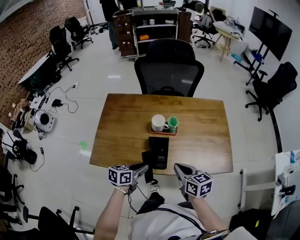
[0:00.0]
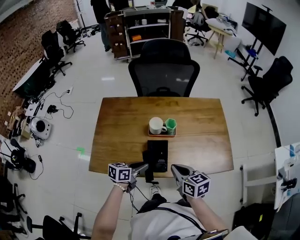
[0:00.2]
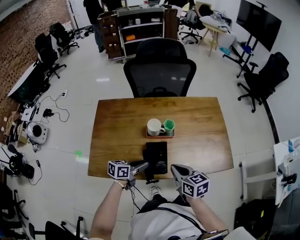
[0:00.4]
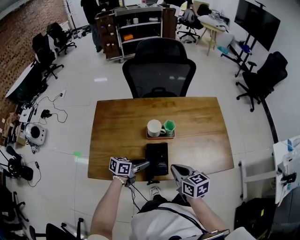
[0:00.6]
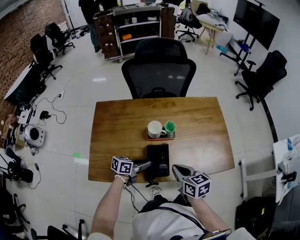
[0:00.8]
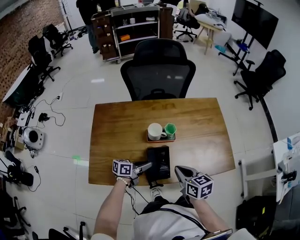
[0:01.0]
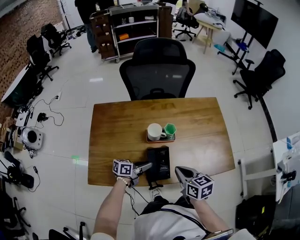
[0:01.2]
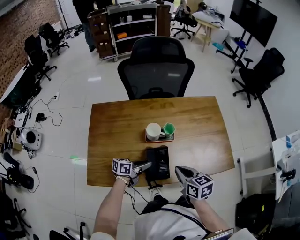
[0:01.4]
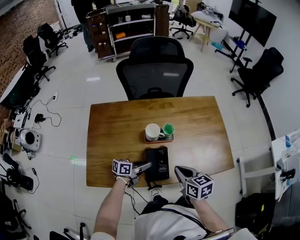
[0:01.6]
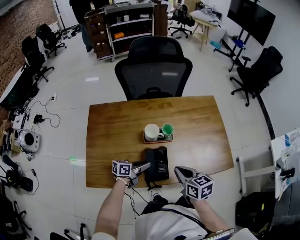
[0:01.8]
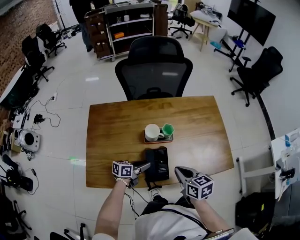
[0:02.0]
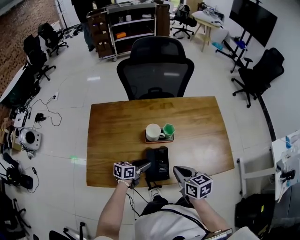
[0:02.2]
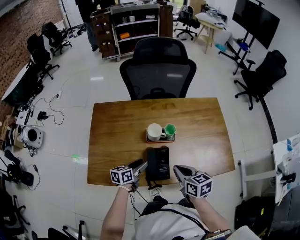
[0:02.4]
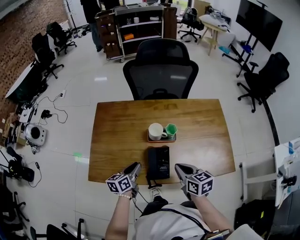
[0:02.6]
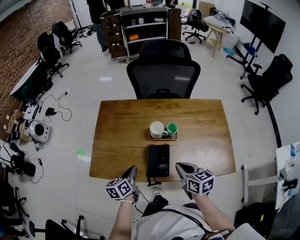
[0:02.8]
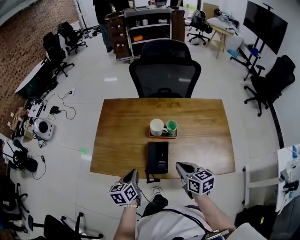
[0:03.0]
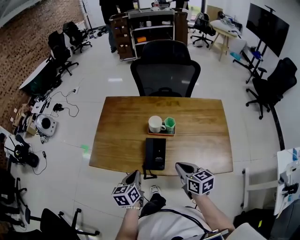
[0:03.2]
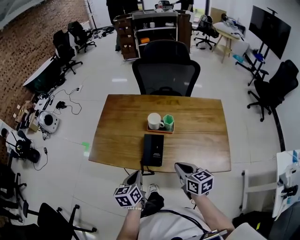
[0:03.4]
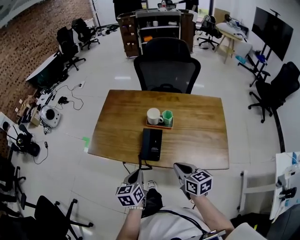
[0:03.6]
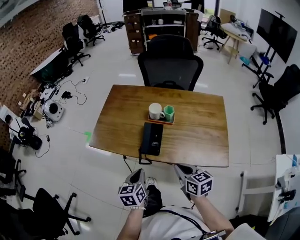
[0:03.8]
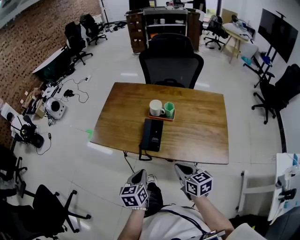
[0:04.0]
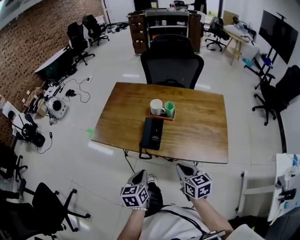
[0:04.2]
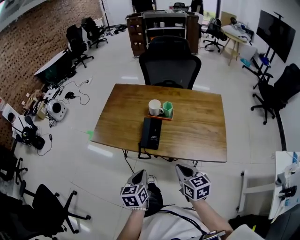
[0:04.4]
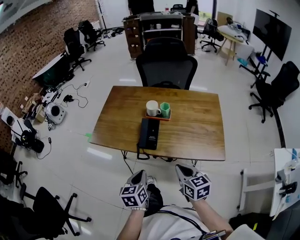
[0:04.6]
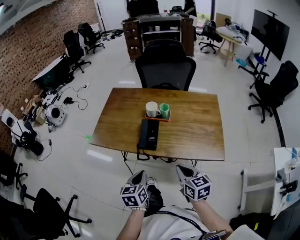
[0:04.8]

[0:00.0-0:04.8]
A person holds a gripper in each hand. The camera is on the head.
0:00.0 to 0:01.6: The right gripper moves approximately 5 cm. Meanwhile the left gripper goes approximately 10 cm forward and downward, and turns by some 30 degrees.
0:01.6 to 0:03.2: The left gripper ends up about 15 cm from where it was, changes its angle by about 60 degrees, and opens, then closes again; the right gripper changes place by approximately 5 cm.
0:03.2 to 0:04.8: The grippers both shift backward by roughly 15 cm.

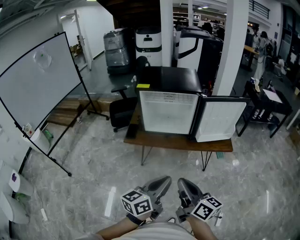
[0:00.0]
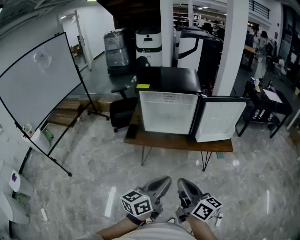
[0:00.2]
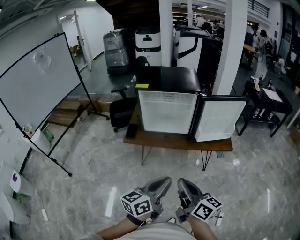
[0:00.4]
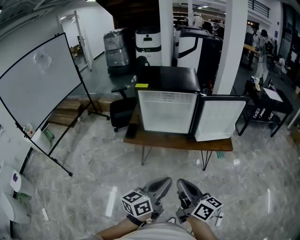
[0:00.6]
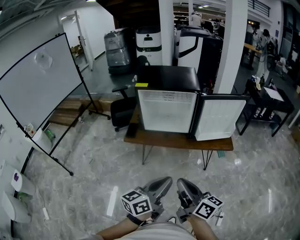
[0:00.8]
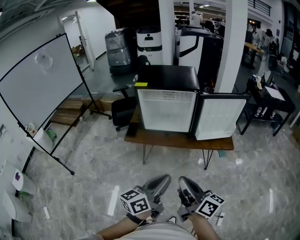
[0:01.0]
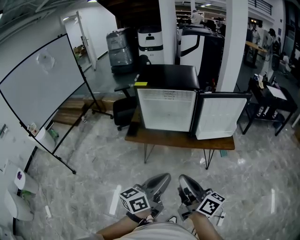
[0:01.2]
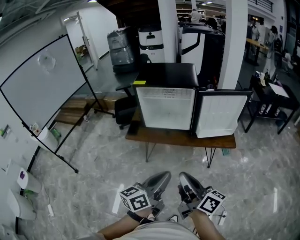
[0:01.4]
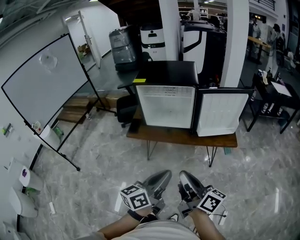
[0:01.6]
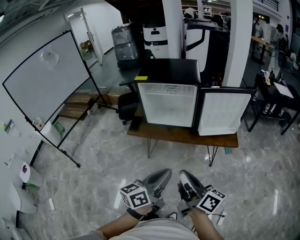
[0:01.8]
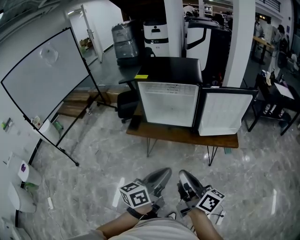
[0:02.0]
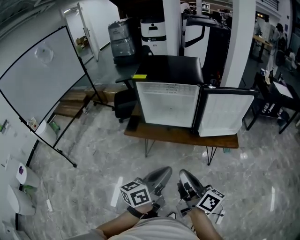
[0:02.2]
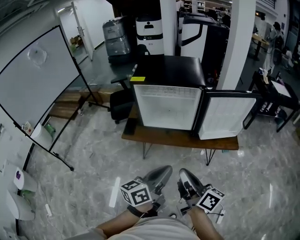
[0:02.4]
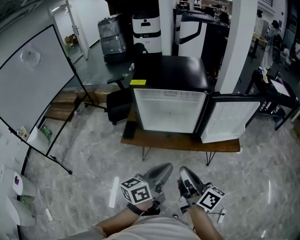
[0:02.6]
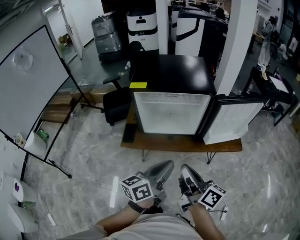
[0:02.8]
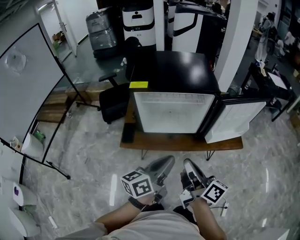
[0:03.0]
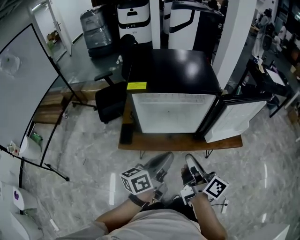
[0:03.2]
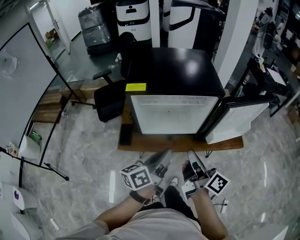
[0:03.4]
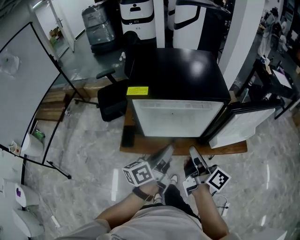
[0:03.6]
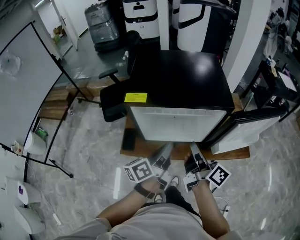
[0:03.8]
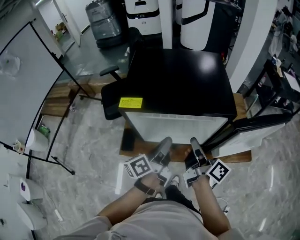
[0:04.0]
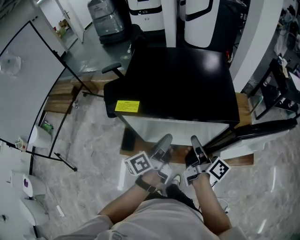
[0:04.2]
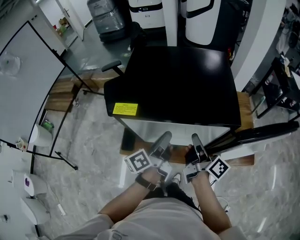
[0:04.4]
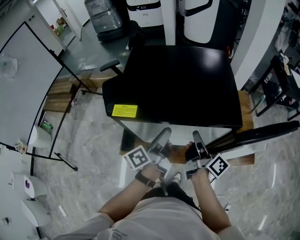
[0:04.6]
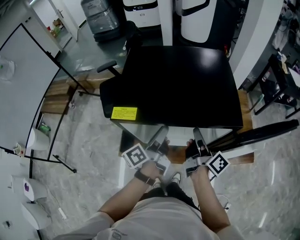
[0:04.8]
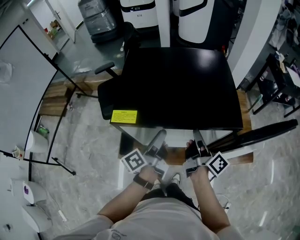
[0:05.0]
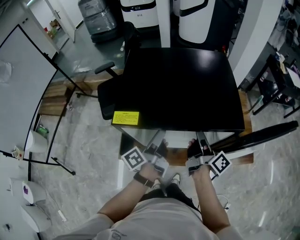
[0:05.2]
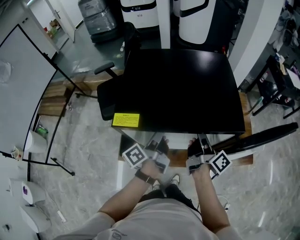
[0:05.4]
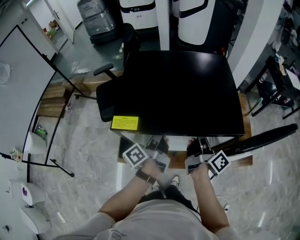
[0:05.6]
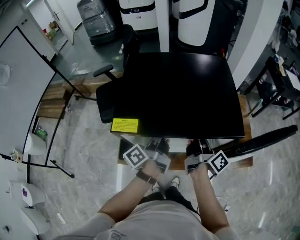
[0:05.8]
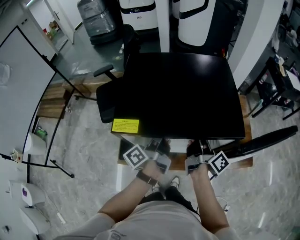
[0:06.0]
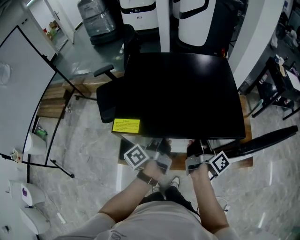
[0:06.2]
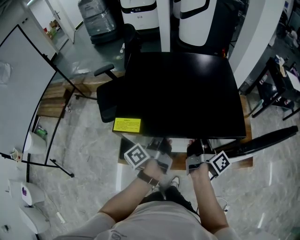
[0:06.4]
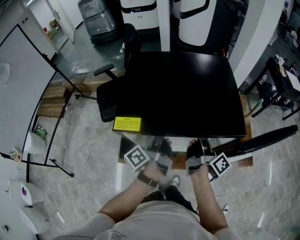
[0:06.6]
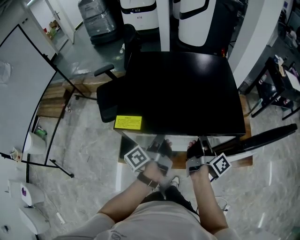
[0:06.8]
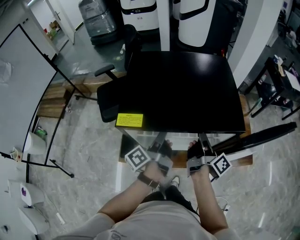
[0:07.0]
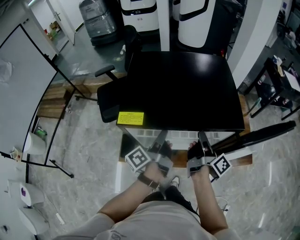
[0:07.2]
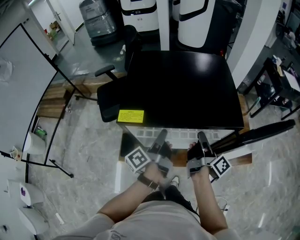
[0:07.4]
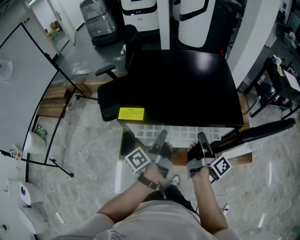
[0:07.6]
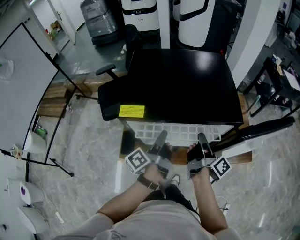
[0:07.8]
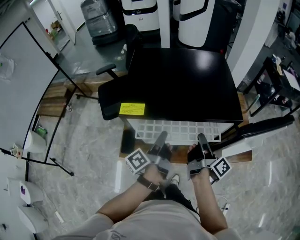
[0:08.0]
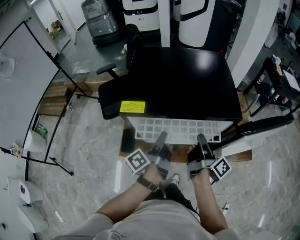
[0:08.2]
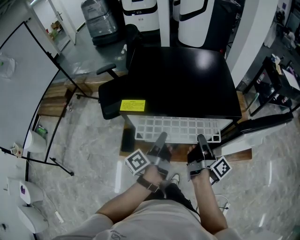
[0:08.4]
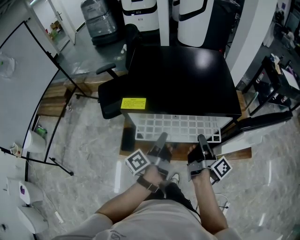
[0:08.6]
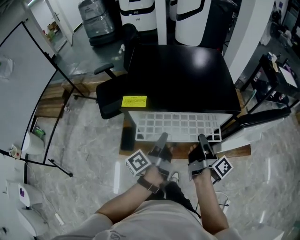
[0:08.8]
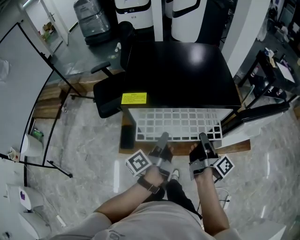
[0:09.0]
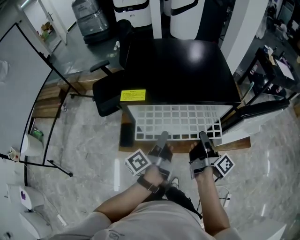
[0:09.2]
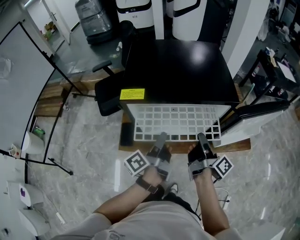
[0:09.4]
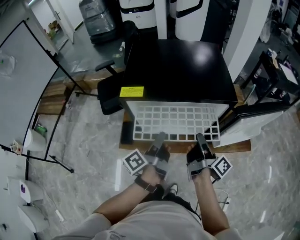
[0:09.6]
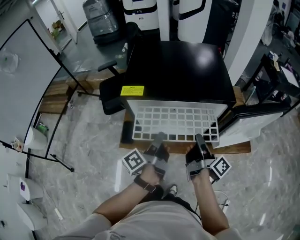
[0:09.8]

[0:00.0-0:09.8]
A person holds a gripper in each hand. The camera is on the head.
0:01.4 to 0:02.8: The left gripper moves roughly 20 cm.
0:02.8 to 0:04.2: The left gripper moves approximately 25 cm, and swivels about 20 degrees.
0:04.2 to 0:05.6: The left gripper shifts by approximately 10 cm.
0:07.0 to 0:08.4: The left gripper changes place by about 5 cm.
0:08.4 to 0:09.8: The left gripper shifts by approximately 5 cm.

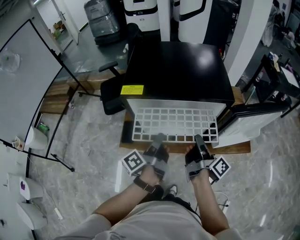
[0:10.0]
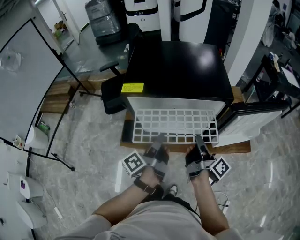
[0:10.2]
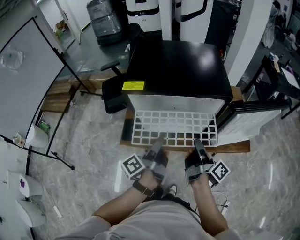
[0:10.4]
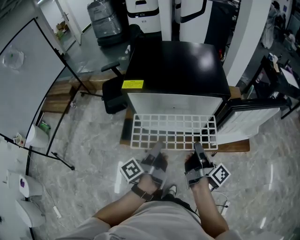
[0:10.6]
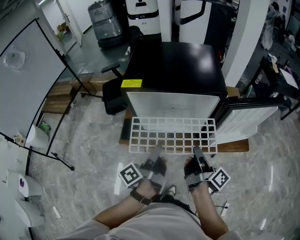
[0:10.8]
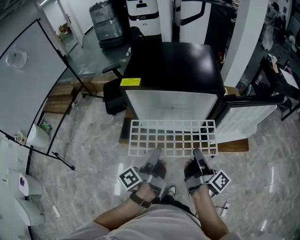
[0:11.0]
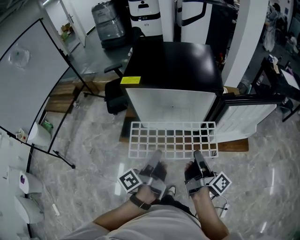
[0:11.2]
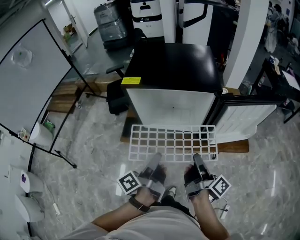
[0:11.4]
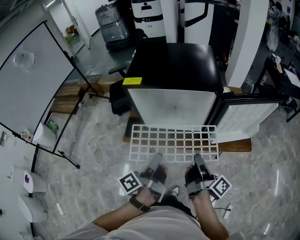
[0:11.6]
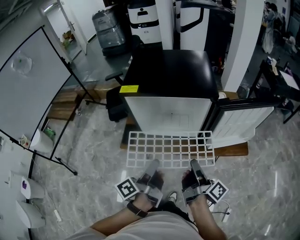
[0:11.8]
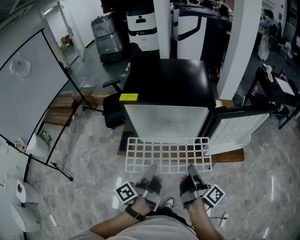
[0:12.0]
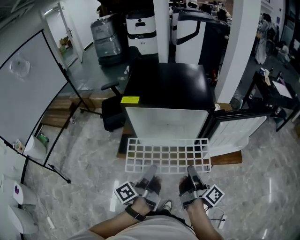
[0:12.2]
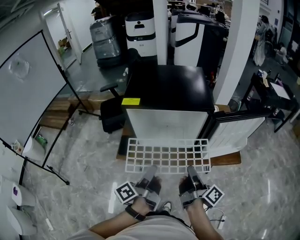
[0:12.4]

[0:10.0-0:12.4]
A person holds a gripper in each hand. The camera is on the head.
0:10.0 to 0:11.2: The left gripper moves about 15 cm.

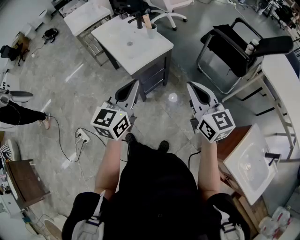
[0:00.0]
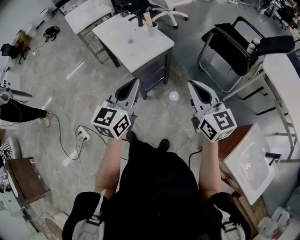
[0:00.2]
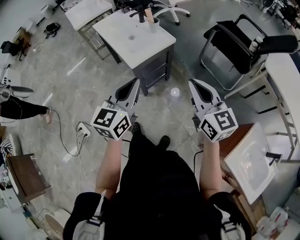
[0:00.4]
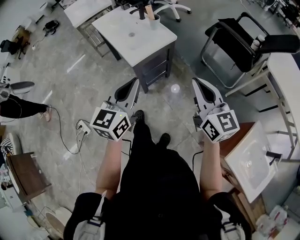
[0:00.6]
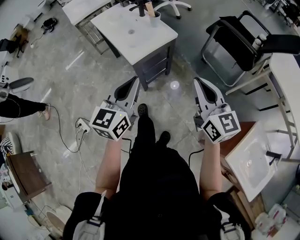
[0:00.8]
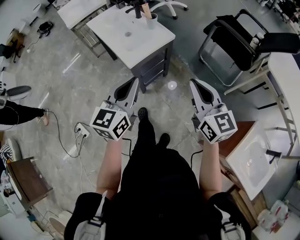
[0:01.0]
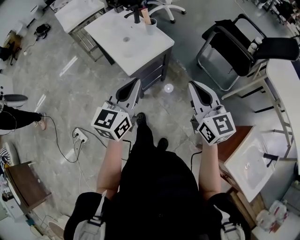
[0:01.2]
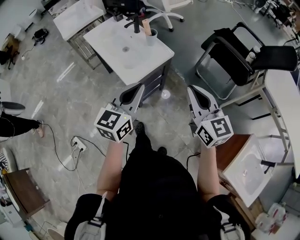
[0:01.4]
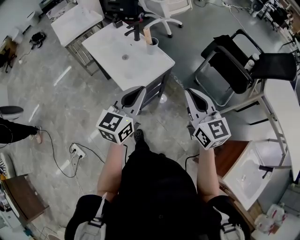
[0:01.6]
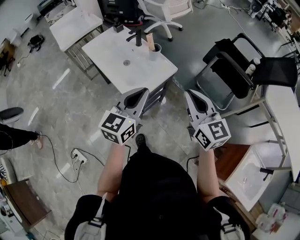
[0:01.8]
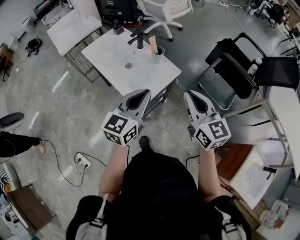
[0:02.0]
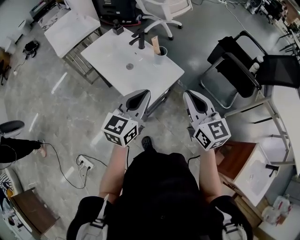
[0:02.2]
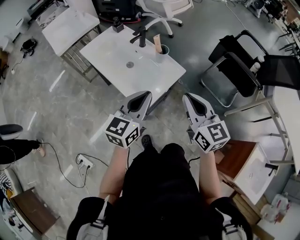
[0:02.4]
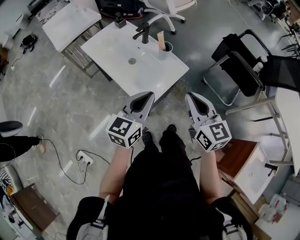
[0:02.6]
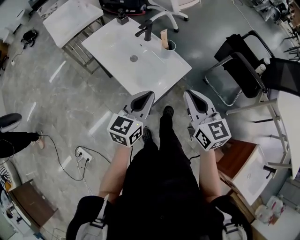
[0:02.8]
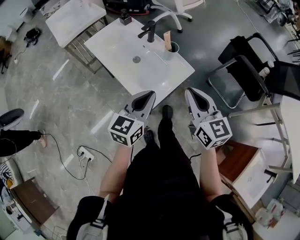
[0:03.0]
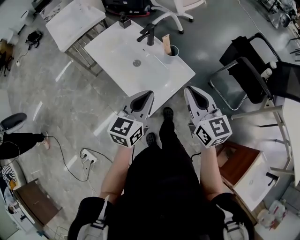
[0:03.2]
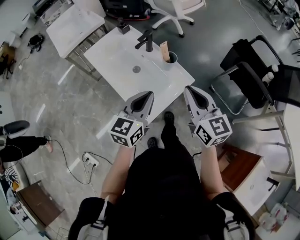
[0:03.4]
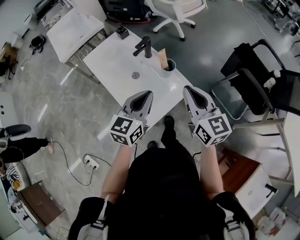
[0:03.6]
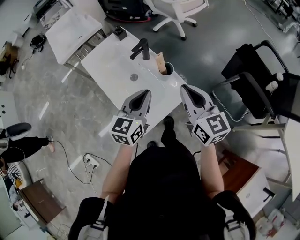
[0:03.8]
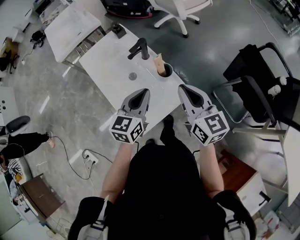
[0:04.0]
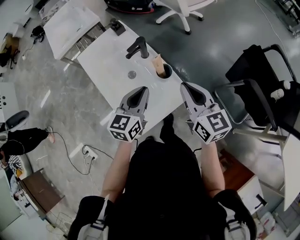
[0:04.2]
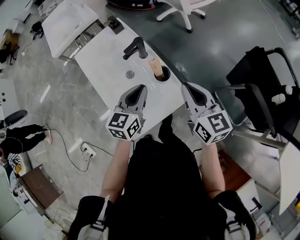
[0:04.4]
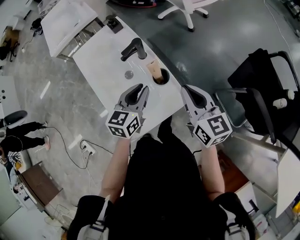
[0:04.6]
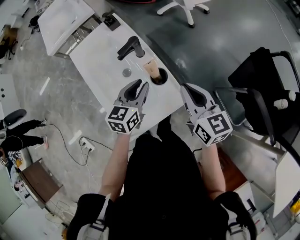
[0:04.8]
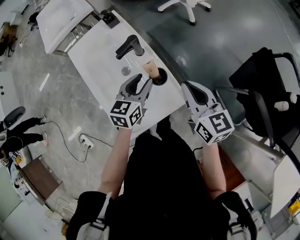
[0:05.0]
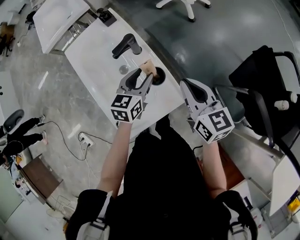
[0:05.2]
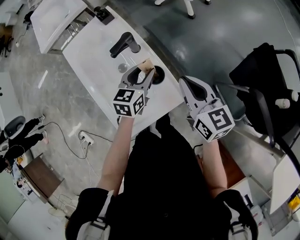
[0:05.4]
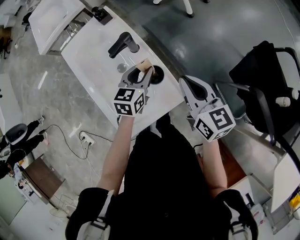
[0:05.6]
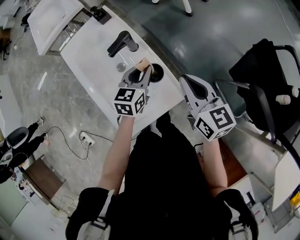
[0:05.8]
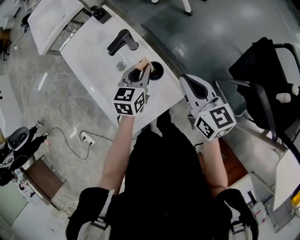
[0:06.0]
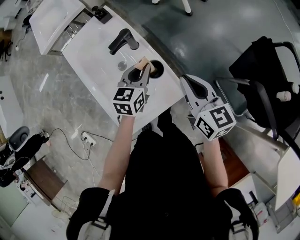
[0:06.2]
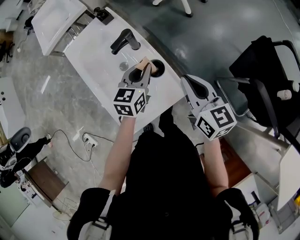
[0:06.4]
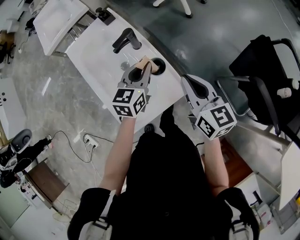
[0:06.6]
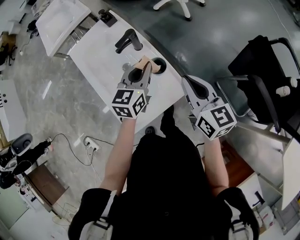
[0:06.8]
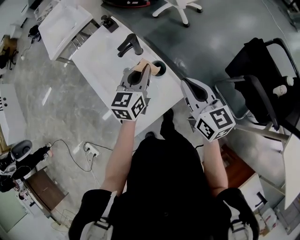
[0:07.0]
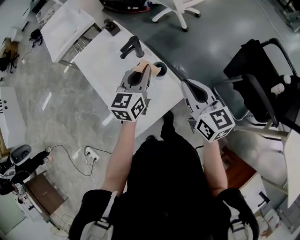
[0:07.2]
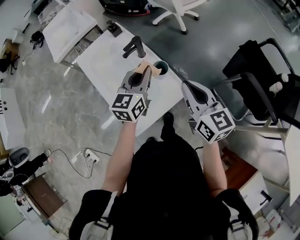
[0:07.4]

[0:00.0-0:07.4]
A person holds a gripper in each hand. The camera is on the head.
0:00.0 to 0:01.4: The grippers both shift forward by some 10 cm.
0:01.4 to 0:03.0: The left gripper moves forward, to the left and downward, approximately 20 cm, while the right gripper goes some 20 cm forward and to the left.
0:03.0 to 0:04.4: Both grippers travel together forward, approximately 20 cm.
0:04.4 to 0:06.0: The right gripper changes place by about 5 cm. Meanwhile the left gripper heads forward and downward, covering roughly 10 cm, and opens, then closes once more.
0:06.0 to 0:07.4: The left gripper shifts roughly 15 cm upward and backward. The right gripper goes about 10 cm backward and upward.
